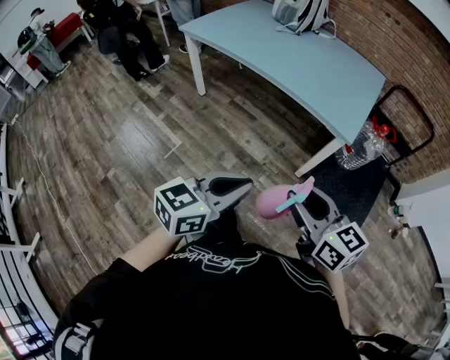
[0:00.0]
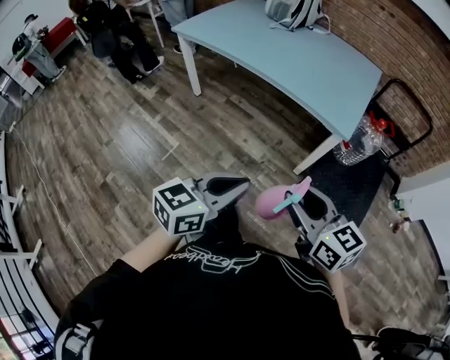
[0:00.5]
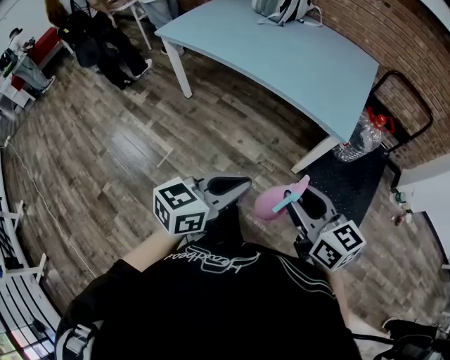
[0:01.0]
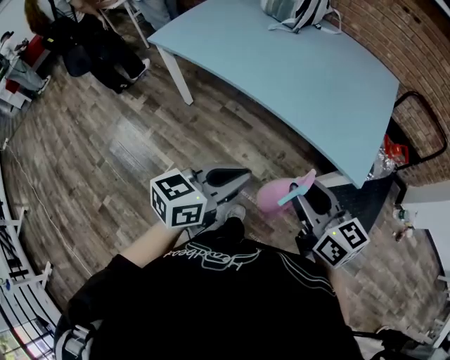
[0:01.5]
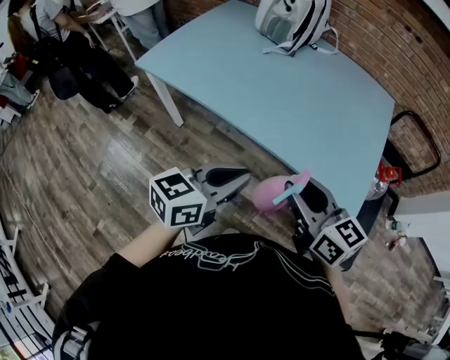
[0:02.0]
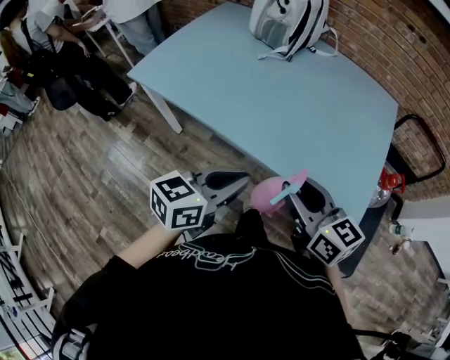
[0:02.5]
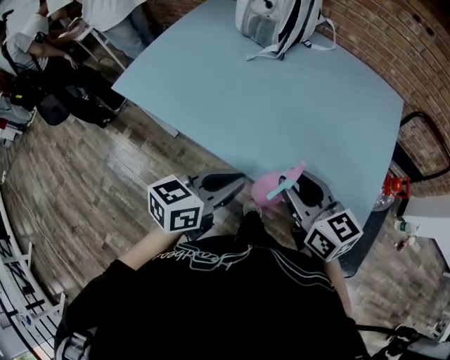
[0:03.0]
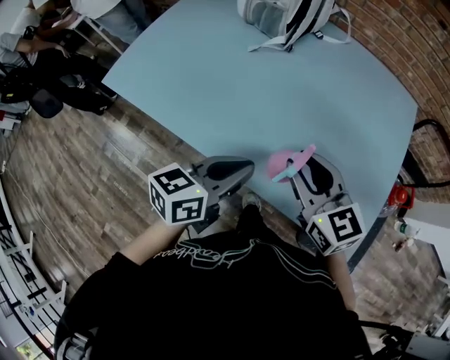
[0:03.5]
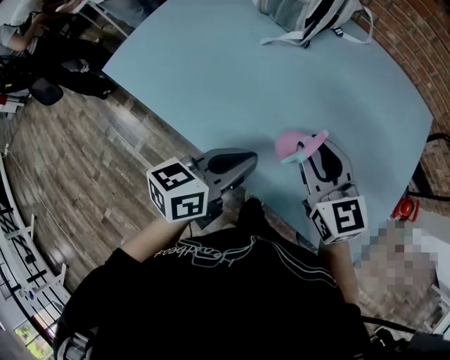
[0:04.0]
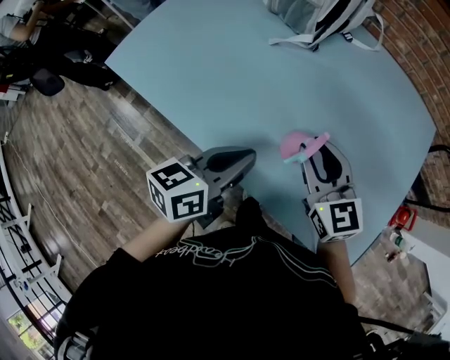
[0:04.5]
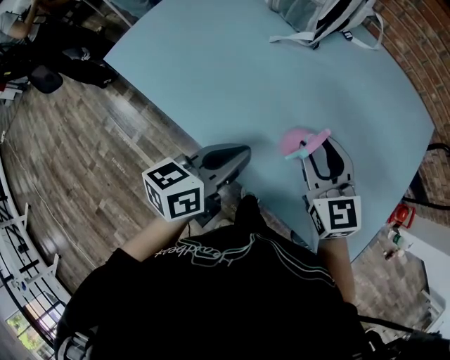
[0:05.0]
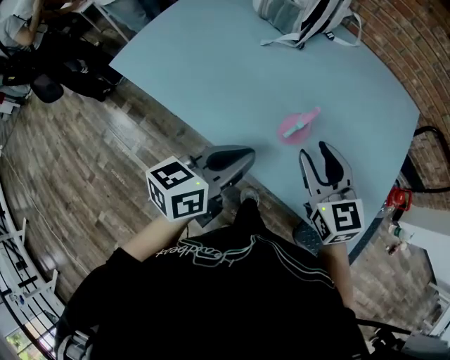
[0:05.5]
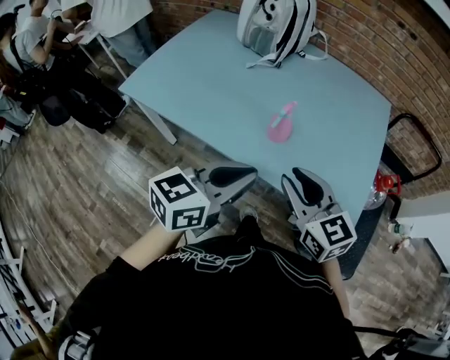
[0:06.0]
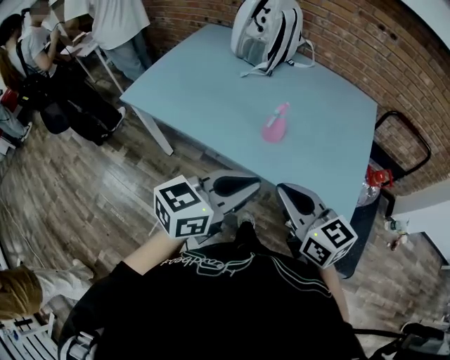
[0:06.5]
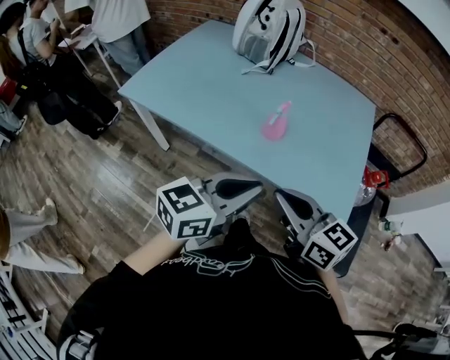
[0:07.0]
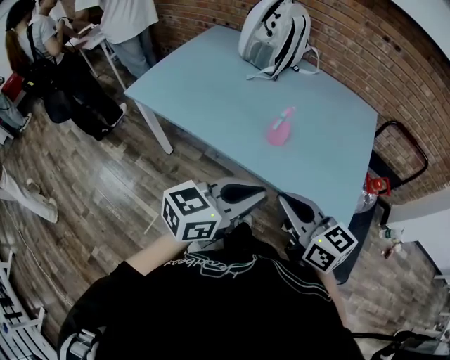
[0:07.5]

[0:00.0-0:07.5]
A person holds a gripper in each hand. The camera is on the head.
0:00.0 to 0:02.0: The pair of grippers is taken forward, about 50 cm.
0:02.0 to 0:04.0: Both grippers move forward, roughly 30 cm.
0:04.0 to 0:05.5: The grippers both shift backward by about 5 cm.
0:05.5 to 0:07.5: The left gripper goes about 20 cm backward and upward, and rotates roughly 20 degrees; the right gripper goes roughly 25 cm backward, turns by roughly 20 degrees, and closes its fingers.

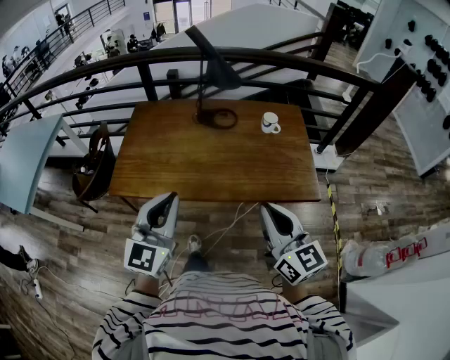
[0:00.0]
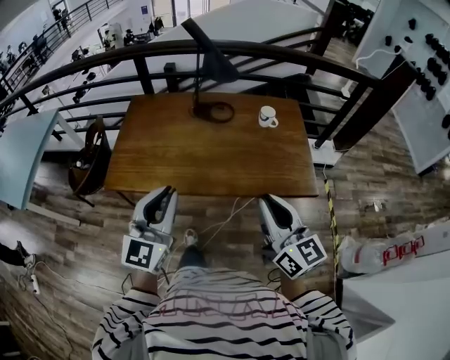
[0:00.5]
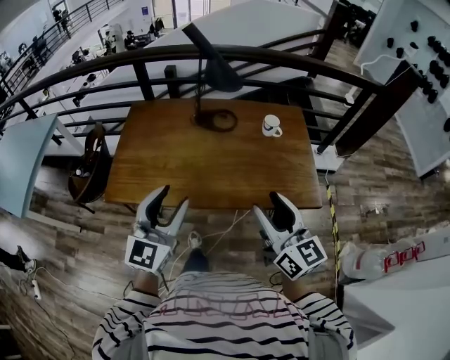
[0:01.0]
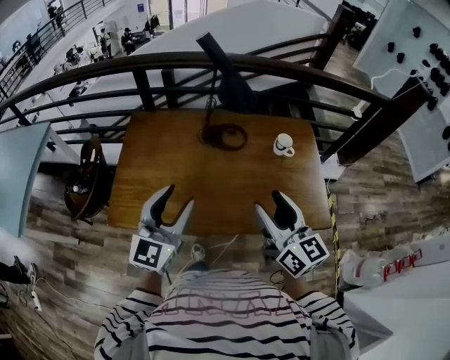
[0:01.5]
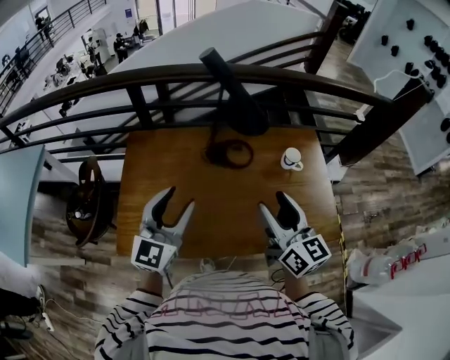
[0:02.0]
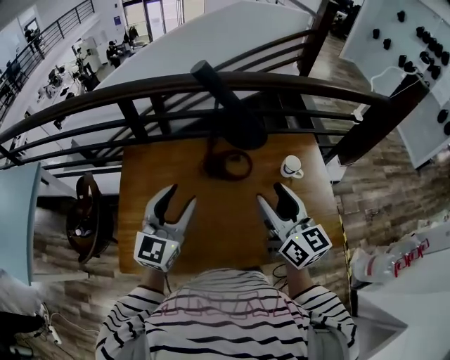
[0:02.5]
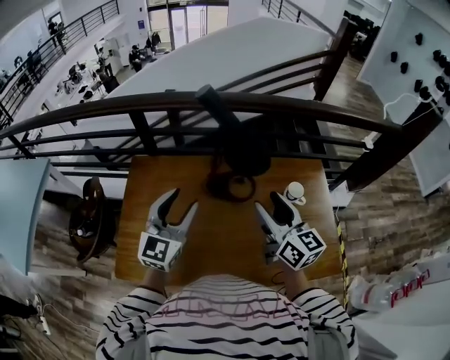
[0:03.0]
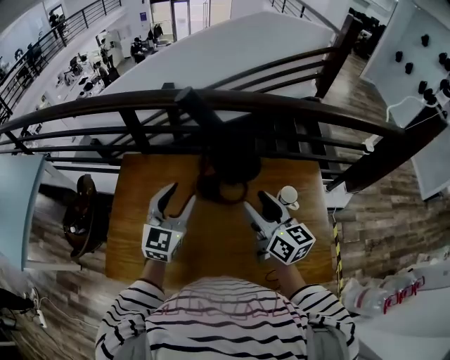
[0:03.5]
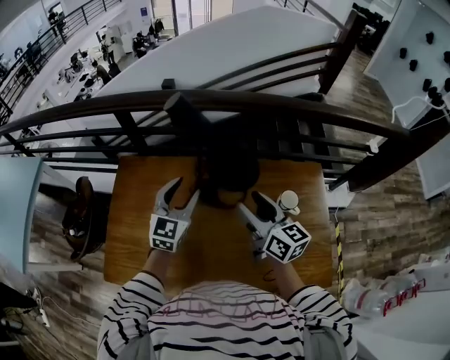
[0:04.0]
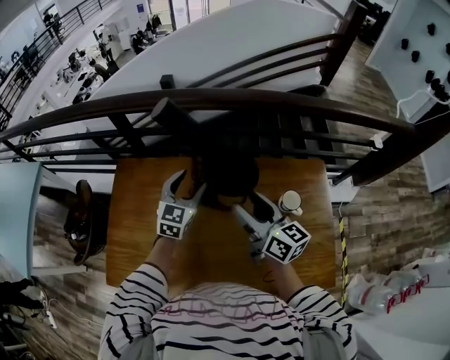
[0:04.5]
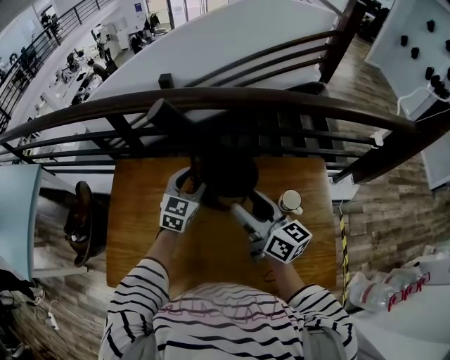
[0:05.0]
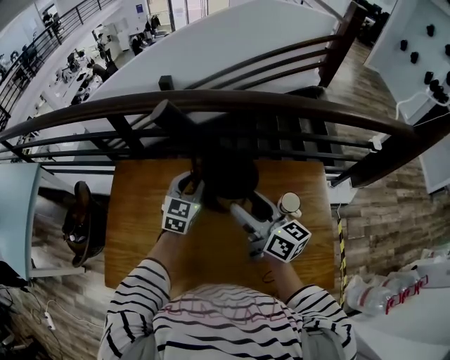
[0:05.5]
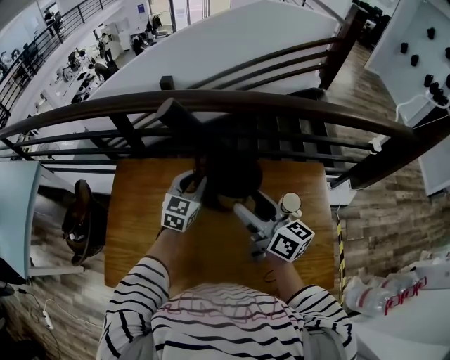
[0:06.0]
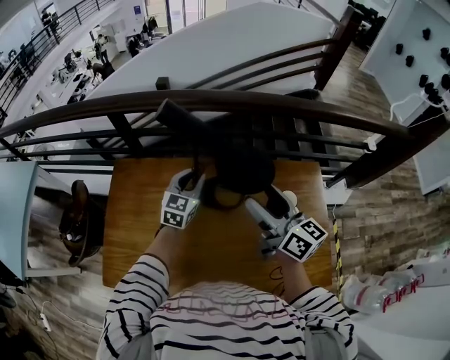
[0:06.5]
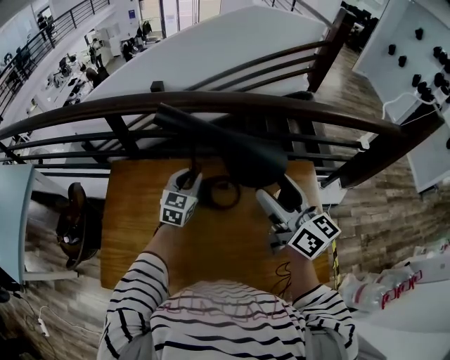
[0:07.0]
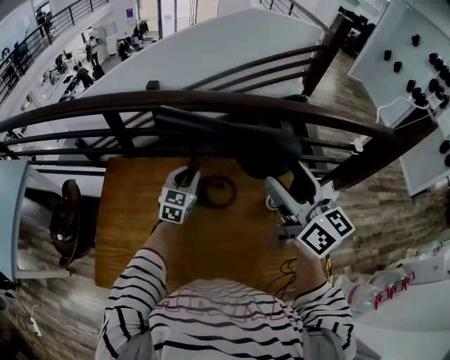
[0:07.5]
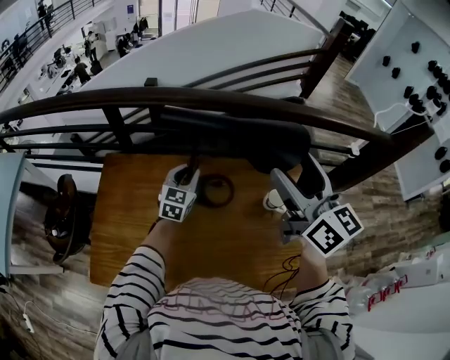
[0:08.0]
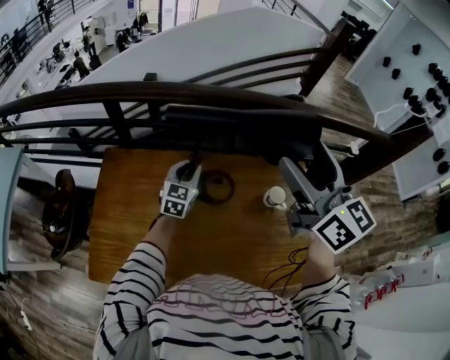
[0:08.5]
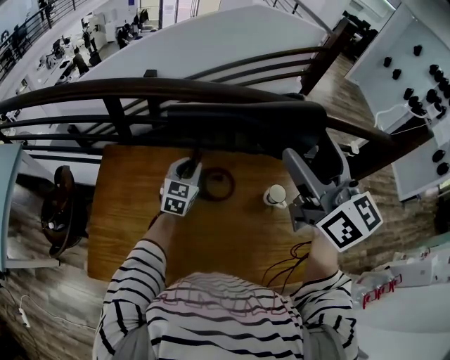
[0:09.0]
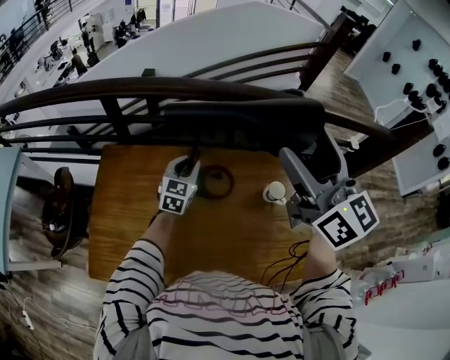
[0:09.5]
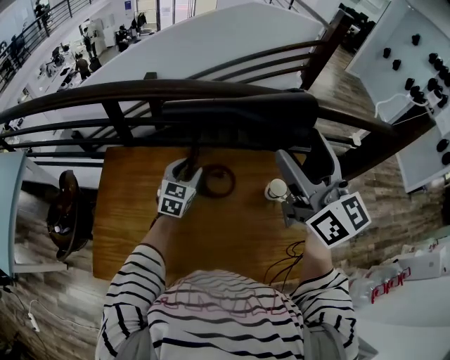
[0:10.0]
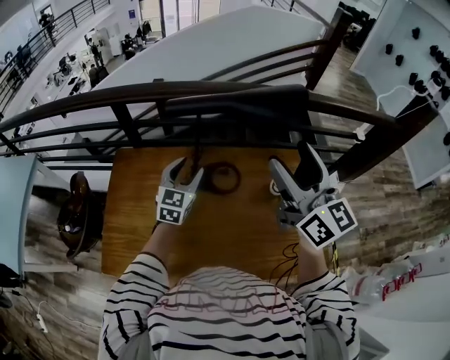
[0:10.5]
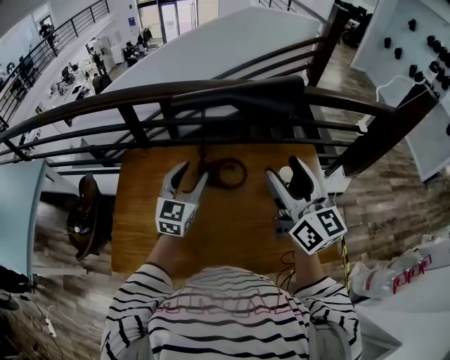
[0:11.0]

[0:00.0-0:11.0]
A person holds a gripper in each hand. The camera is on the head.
0:00.0 to 0:02.0: Both grippers travel together forward, about 35 cm. The right gripper opens up; the left gripper opens its fingers.
0:02.0 to 0:03.5: The right gripper is displaced forward by roughly 20 cm. The left gripper heads forward and to the right, covering some 20 cm.
0:03.5 to 0:05.5: The right gripper goes some 10 cm forward; the left gripper is displaced forward, downward and to the right by approximately 20 cm, and closes up.
0:05.5 to 0:07.5: The right gripper heads upward, covering about 15 cm, and changes its angle by roughly 20 degrees.
0:07.5 to 0:09.0: The right gripper moves upward, approximately 10 cm.
0:09.0 to 0:11.0: The right gripper is displaced backward and downward by about 15 cm. Meanwhile the left gripper heads backward and upward, covering roughly 20 cm, and opens.

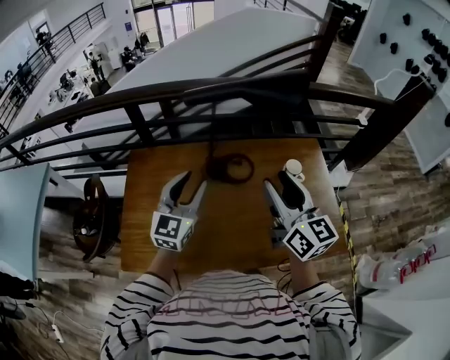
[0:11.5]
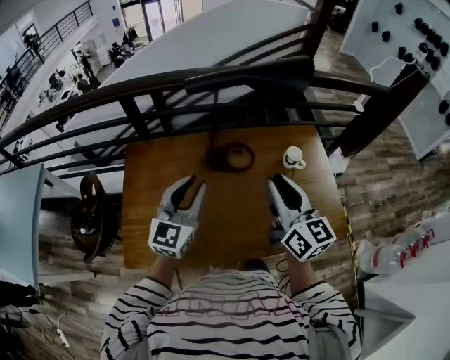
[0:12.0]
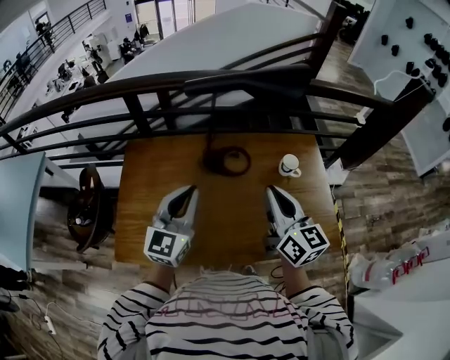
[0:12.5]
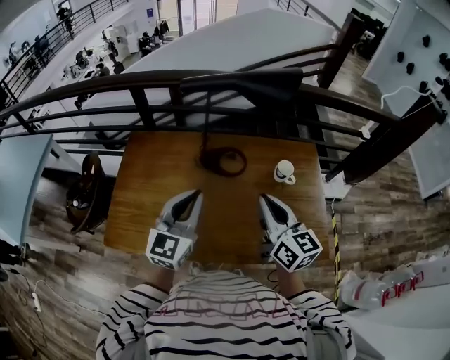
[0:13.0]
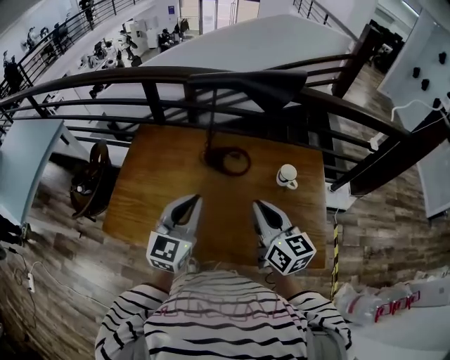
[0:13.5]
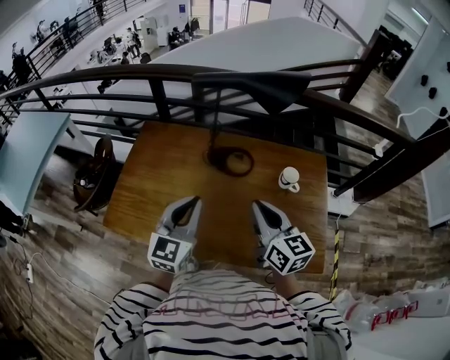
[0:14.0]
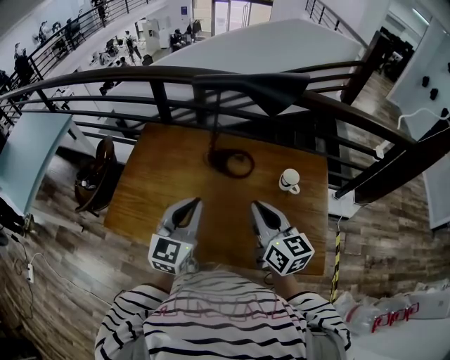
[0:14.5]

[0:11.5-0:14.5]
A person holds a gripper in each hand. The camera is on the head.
0:11.5 to 0:13.0: The right gripper goes approximately 10 cm downward and to the right, and closes up. Meanwhile the left gripper moves backward and to the right, some 10 cm, and closes its fingers.
0:13.0 to 0:14.5: There are only small adjustments of the grippers.

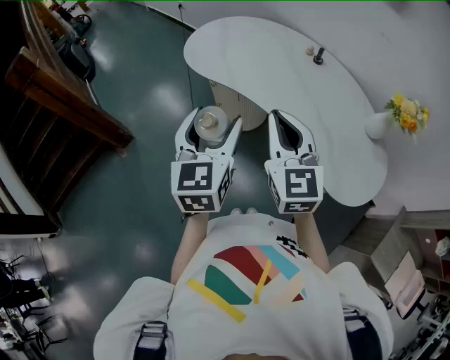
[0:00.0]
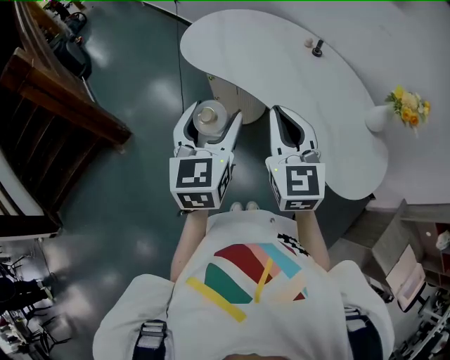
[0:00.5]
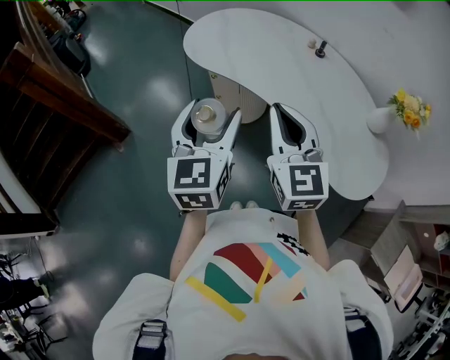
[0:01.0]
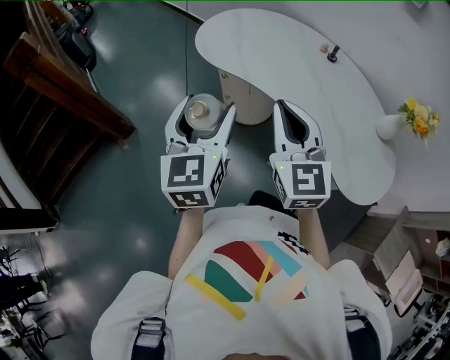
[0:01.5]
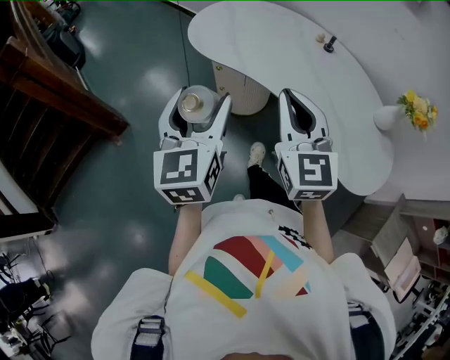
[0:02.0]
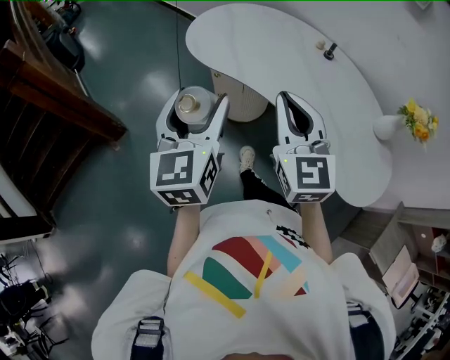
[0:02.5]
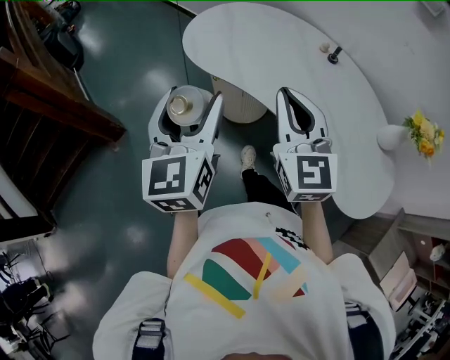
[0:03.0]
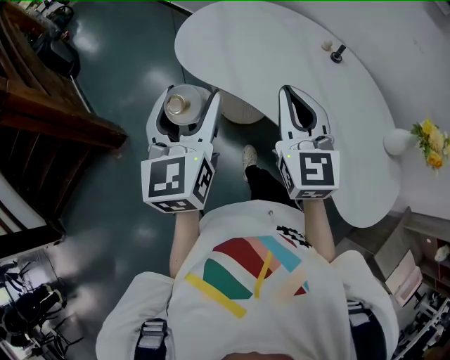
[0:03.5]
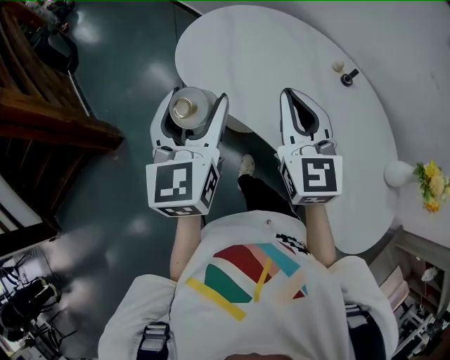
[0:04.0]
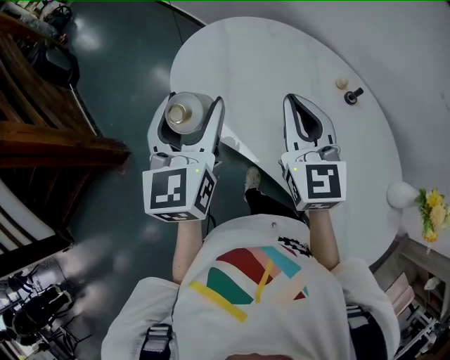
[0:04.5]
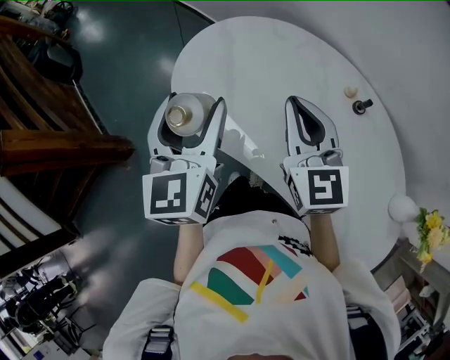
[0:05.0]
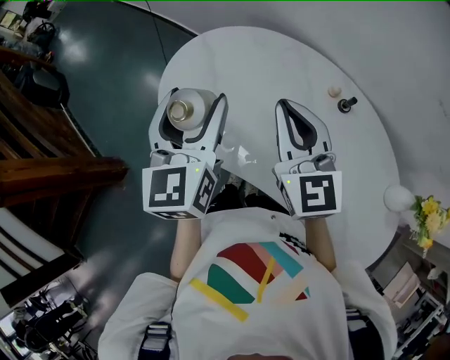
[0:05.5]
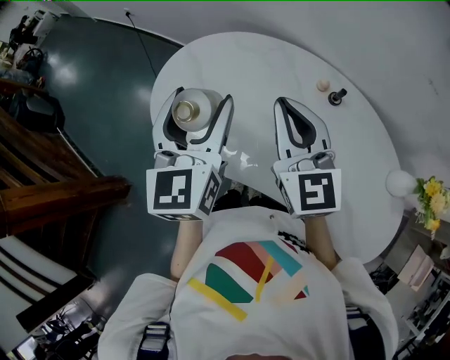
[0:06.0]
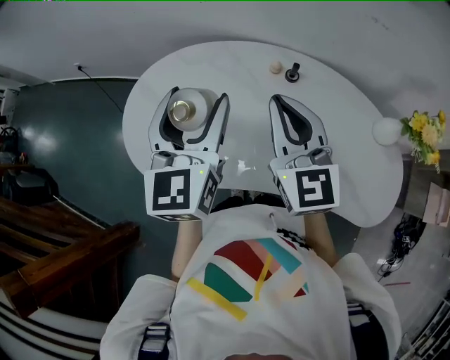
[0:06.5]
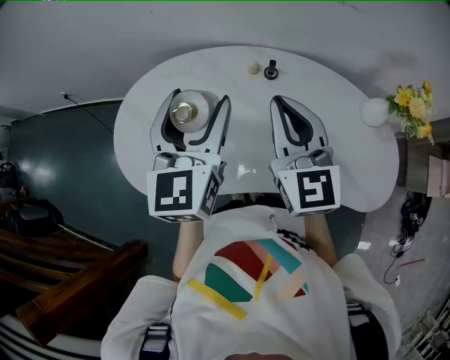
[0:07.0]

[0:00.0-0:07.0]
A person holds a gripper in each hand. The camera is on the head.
0:00.0 to 0:02.0: The left gripper heads to the left, covering approximately 10 cm, while the right gripper travels to the left by approximately 5 cm.
0:02.0 to 0:03.5: The grippers both shift forward by approximately 15 cm.
0:03.5 to 0:05.0: Both grippers travel together forward, roughly 25 cm.
0:05.0 to 0:07.0: The right gripper ends up approximately 15 cm from where it was, and rotates about 40 degrees; the left gripper ends up roughly 20 cm from where it was, and swivels approximately 40 degrees.
